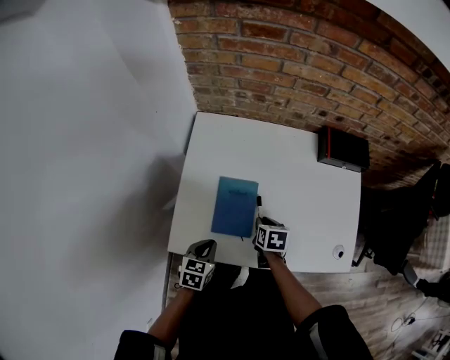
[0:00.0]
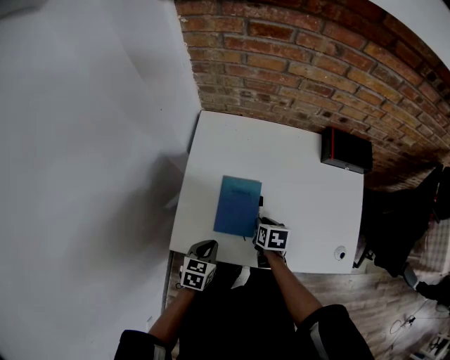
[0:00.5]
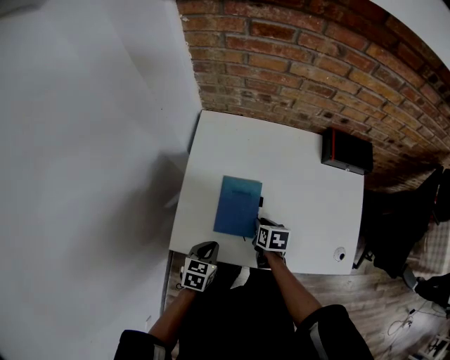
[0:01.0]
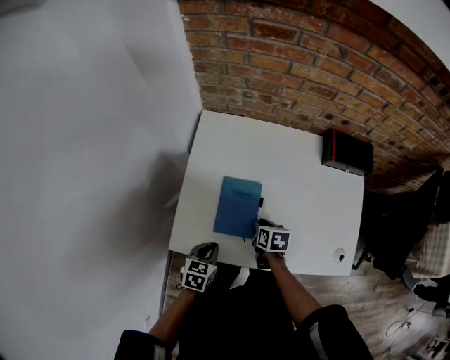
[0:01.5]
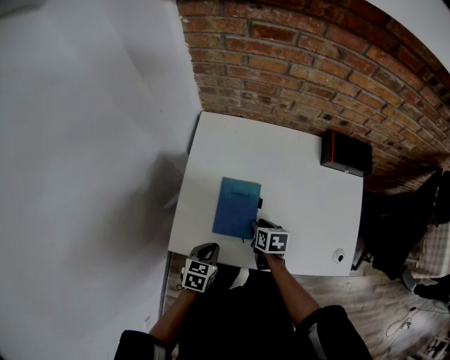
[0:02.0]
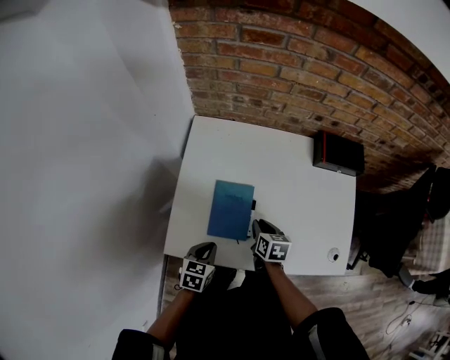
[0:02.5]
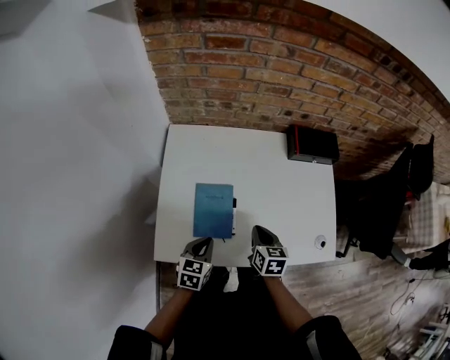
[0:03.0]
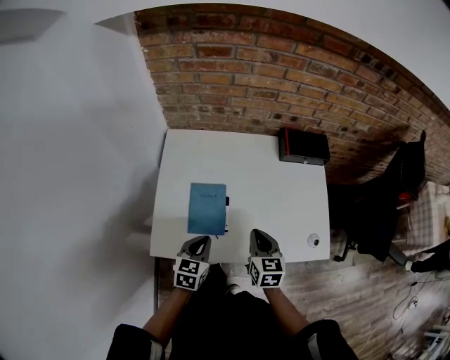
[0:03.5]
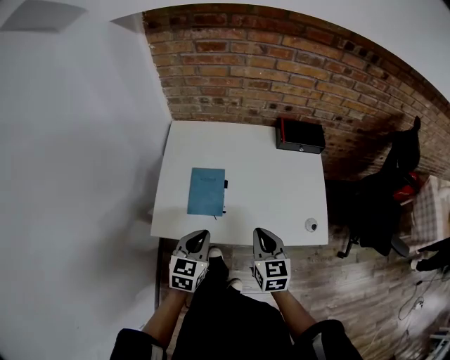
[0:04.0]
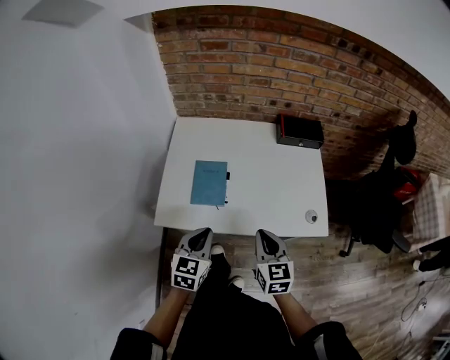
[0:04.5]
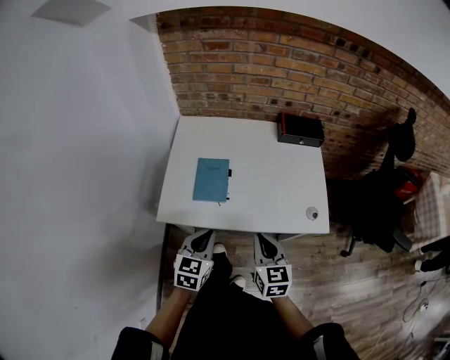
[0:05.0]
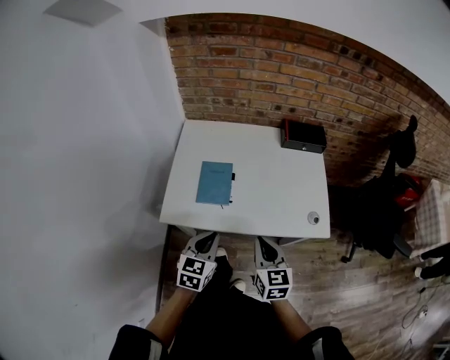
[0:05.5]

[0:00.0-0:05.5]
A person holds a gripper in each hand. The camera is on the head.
0:00.0 to 0:02.0: There are only small adjustments of the grippers.
0:02.0 to 0:03.5: The right gripper travels upward, to the right and backward by approximately 20 cm, turns by roughly 30 degrees, and closes up; the left gripper shifts about 10 cm upward and to the right.
0:03.5 to 0:05.5: The right gripper shifts approximately 20 cm backward. The left gripper travels backward and upward by about 15 cm.

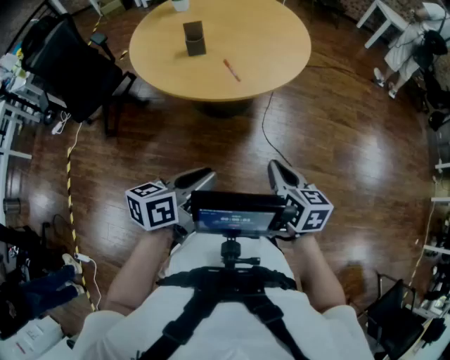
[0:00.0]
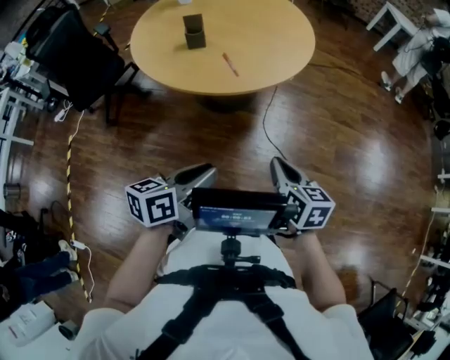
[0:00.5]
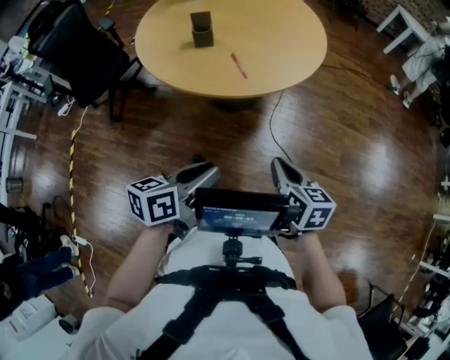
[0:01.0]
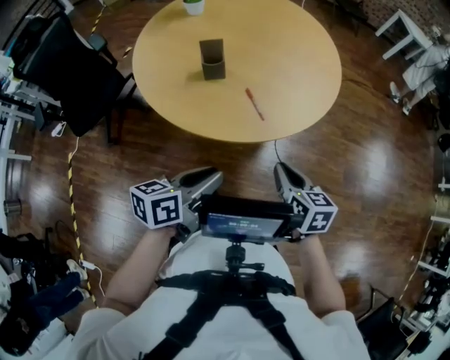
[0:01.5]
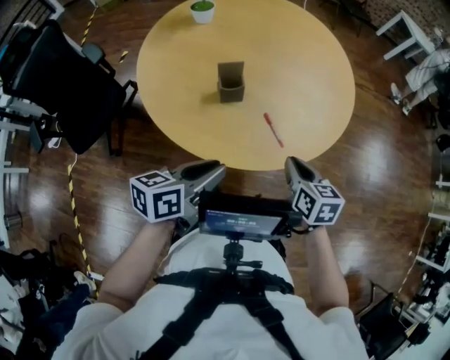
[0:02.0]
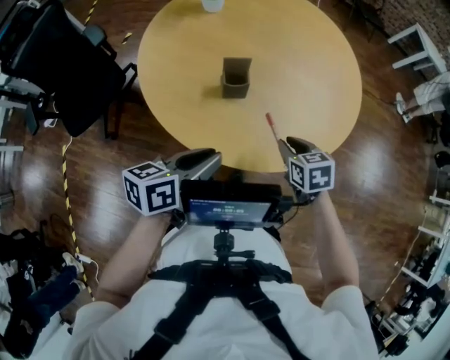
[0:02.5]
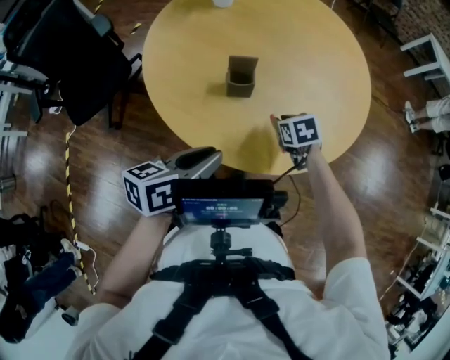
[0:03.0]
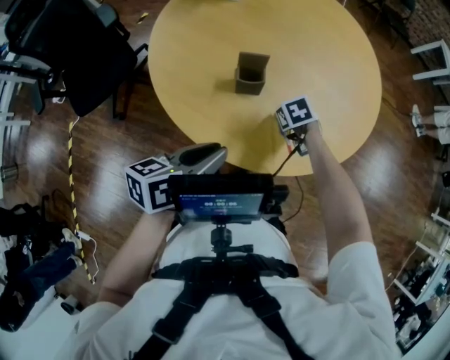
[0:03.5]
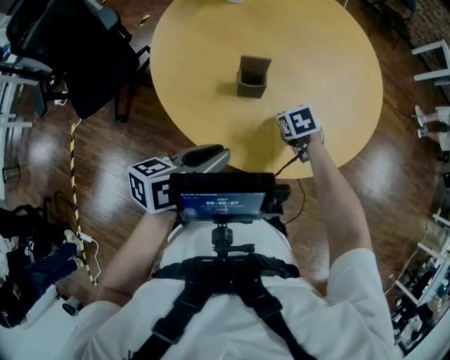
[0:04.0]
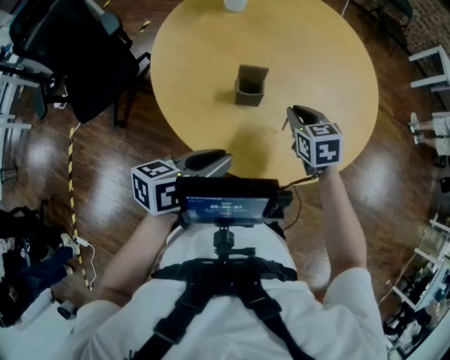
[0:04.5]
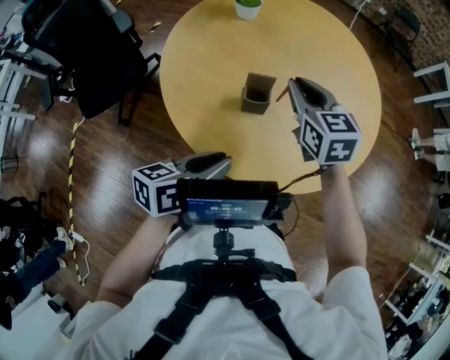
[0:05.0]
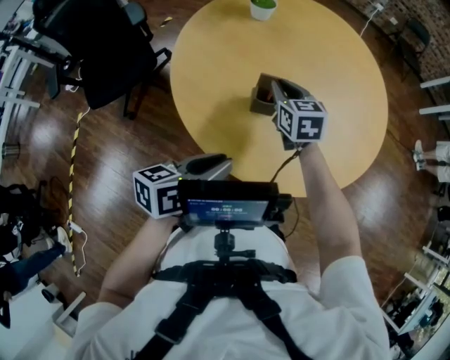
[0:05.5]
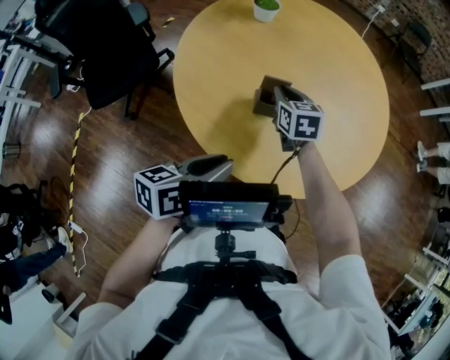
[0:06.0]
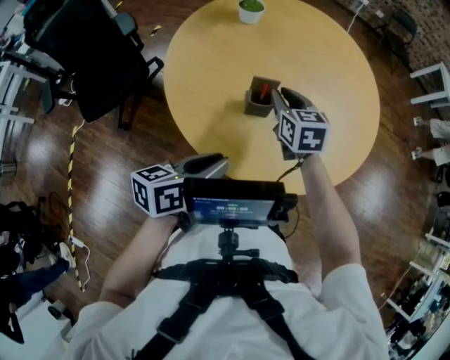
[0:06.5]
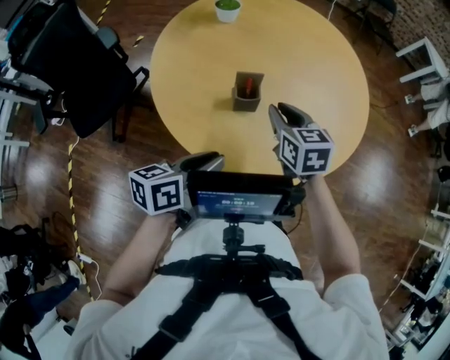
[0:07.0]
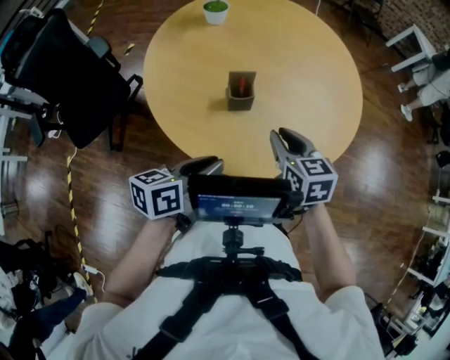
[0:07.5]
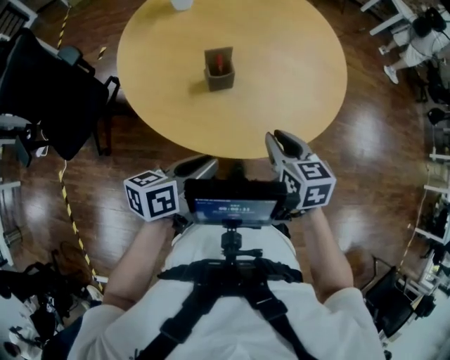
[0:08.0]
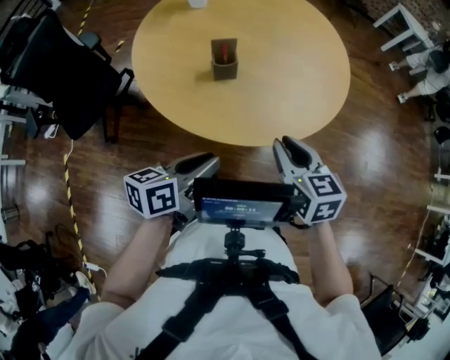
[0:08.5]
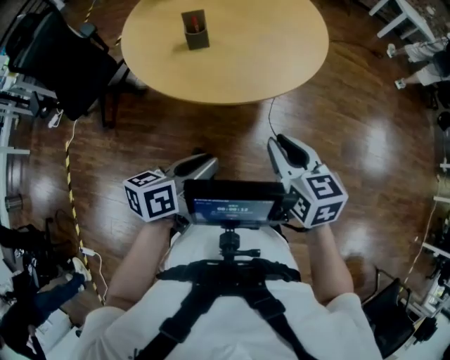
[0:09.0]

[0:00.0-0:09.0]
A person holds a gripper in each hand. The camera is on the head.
0:00.0 to 0:02.0: The two grippers go approximately 25 cm forward and to the left.
0:02.0 to 0:04.5: The right gripper reaches roughly 15 cm downward, then returns, and rotates some 30 degrees.
0:04.5 to 0:07.0: The right gripper swings up and down, about 10 cm each way, with 2 reversals.
0:07.0 to 0:09.0: The two grippers go some 30 cm backward and to the right.

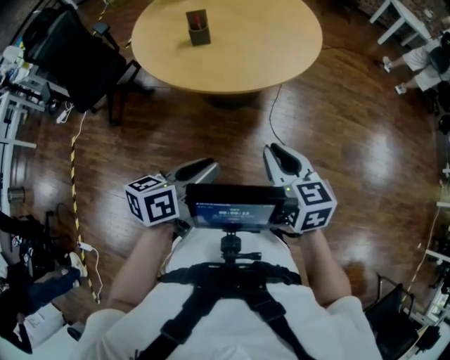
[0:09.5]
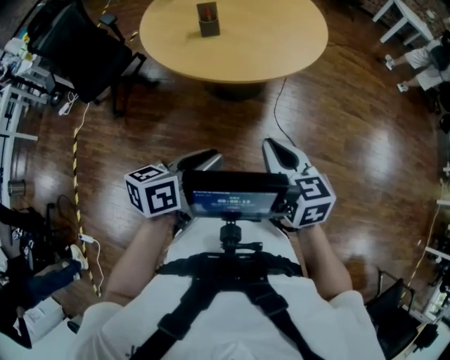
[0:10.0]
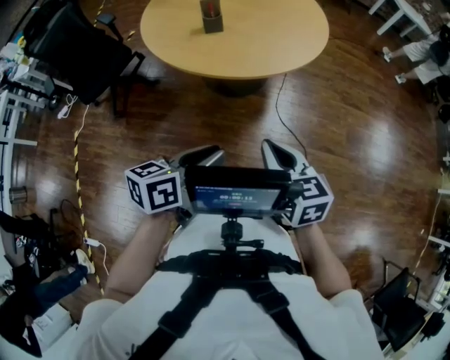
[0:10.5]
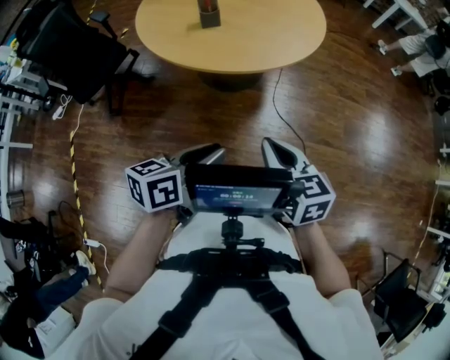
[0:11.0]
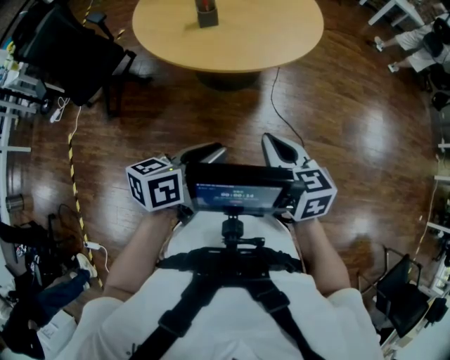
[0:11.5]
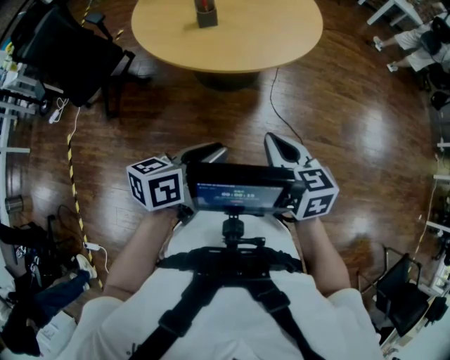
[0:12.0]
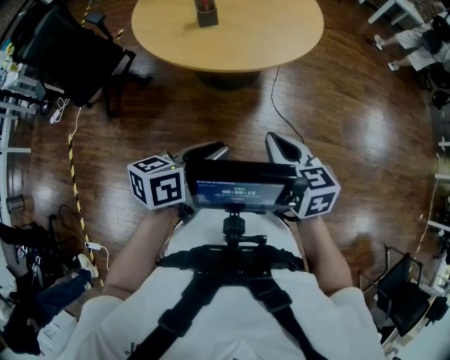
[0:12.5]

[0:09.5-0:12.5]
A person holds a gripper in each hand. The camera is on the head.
0:09.5 to 0:11.0: The left gripper travels to the left by roughly 5 cm; the right gripper travels to the left and backward by roughly 10 cm.
0:11.0 to 0:12.5: There are only small adjustments of the grippers.

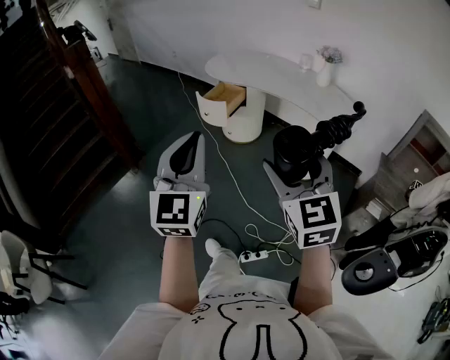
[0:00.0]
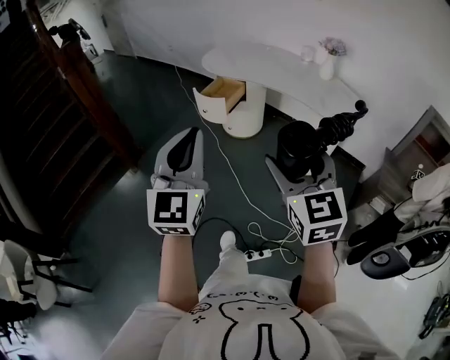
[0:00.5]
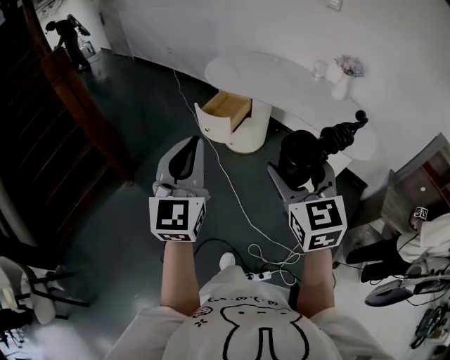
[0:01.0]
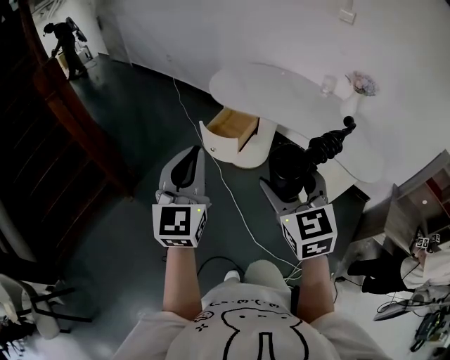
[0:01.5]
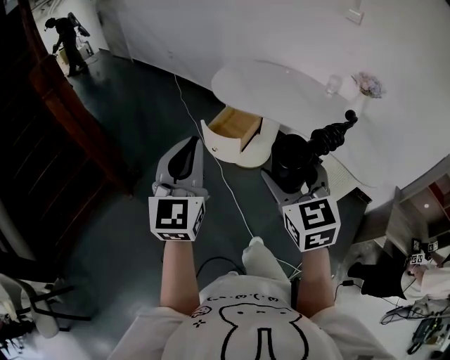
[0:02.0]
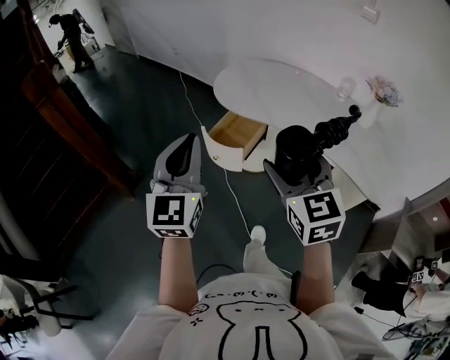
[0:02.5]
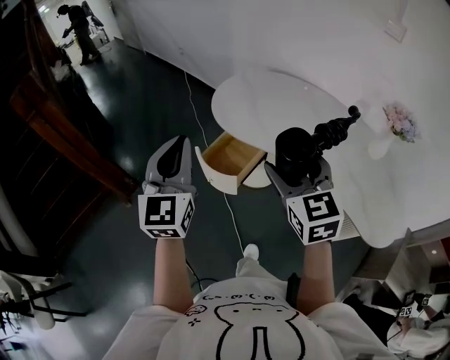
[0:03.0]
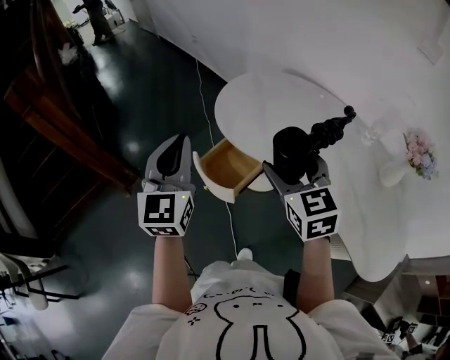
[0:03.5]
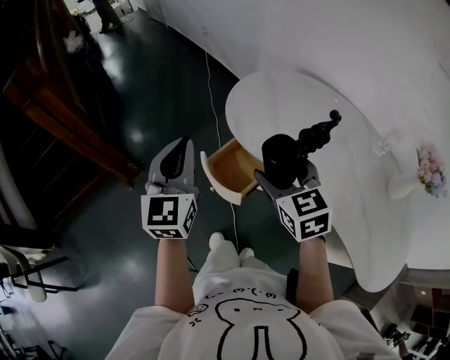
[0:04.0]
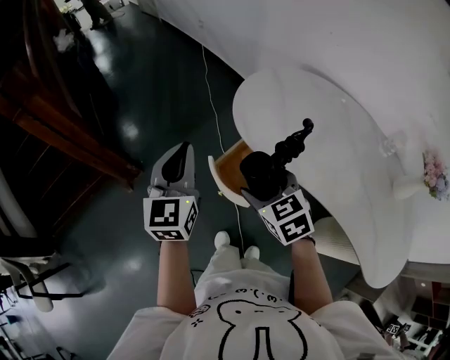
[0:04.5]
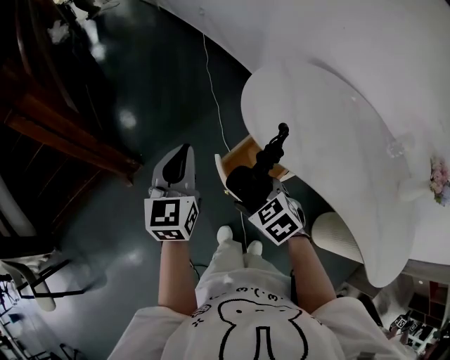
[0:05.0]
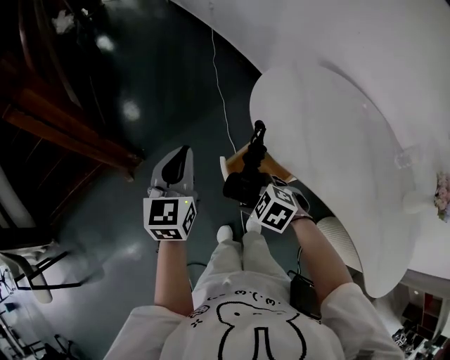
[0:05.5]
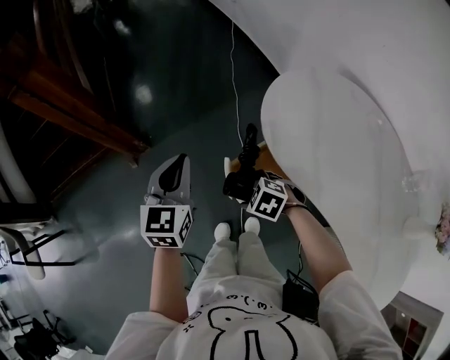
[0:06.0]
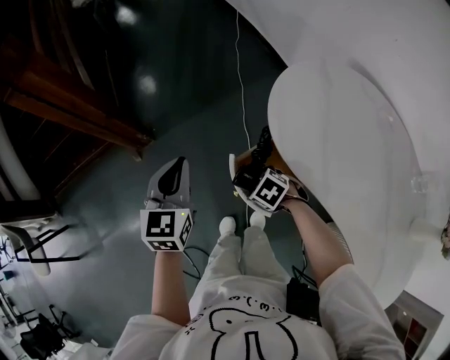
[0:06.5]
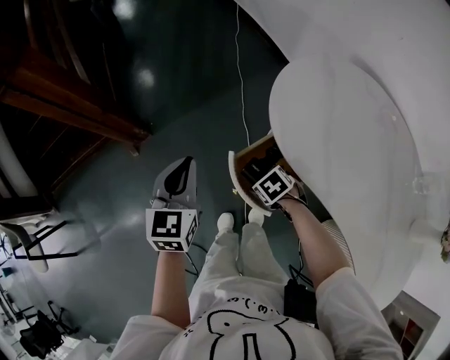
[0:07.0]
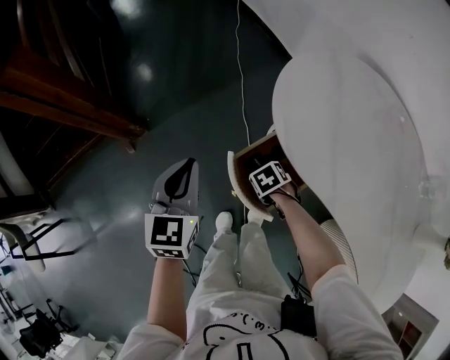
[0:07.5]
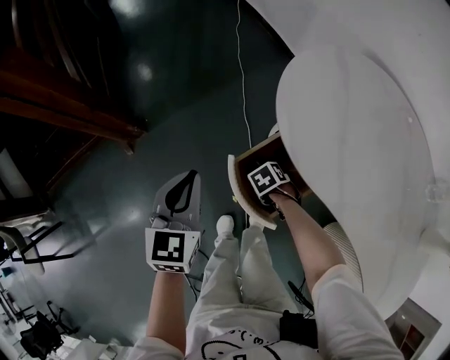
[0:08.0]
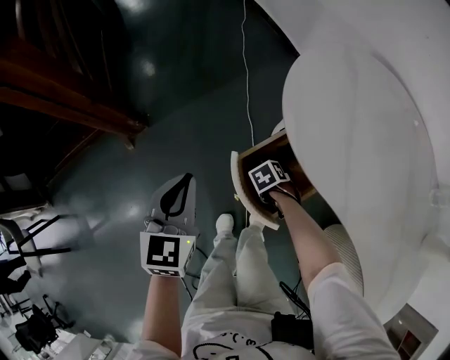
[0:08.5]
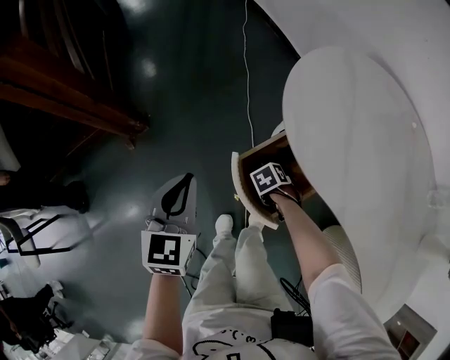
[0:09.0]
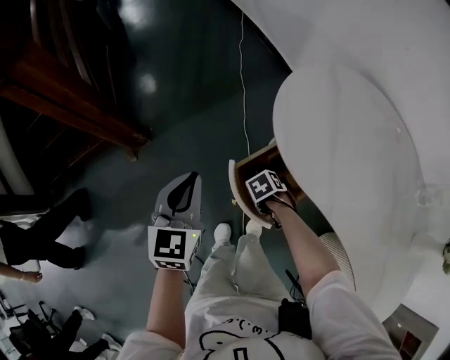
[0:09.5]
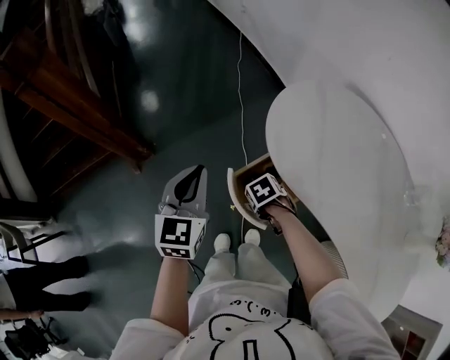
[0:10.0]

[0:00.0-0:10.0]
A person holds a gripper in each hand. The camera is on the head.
0:00.0 to 0:02.0: The two grippers go roughly 35 cm forward.
0:02.0 to 0:04.0: Both grippers move forward, approximately 40 cm. The left gripper turns by approximately 20 degrees. Meanwhile the right gripper turns by roughly 20 degrees.
0:04.0 to 0:06.0: The left gripper shifts by approximately 20 cm. The right gripper moves downward, about 25 cm, and tips its fingers downward by some 40 degrees.
0:06.0 to 0:08.0: The right gripper is displaced downward by about 20 cm, and changes its angle by roughly 40 degrees, while the left gripper shifts approximately 10 cm downward.
0:08.0 to 0:10.0: The two grippers go about 10 cm upward.
